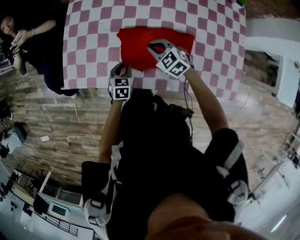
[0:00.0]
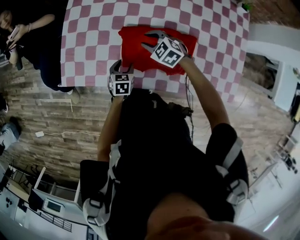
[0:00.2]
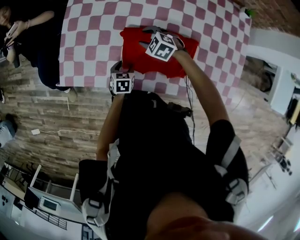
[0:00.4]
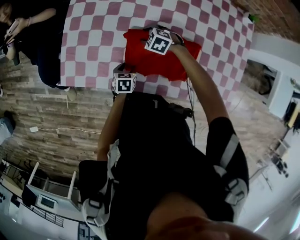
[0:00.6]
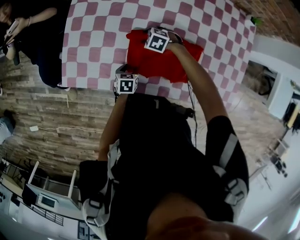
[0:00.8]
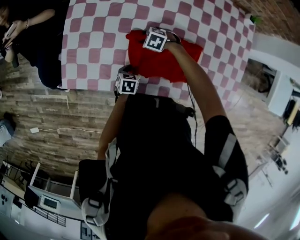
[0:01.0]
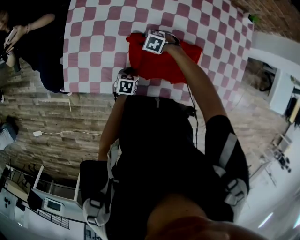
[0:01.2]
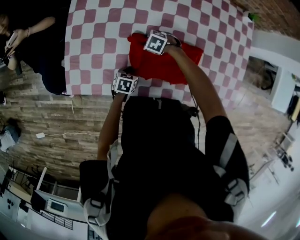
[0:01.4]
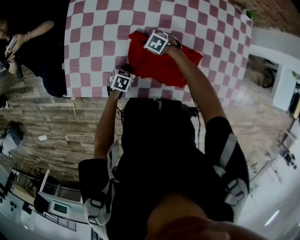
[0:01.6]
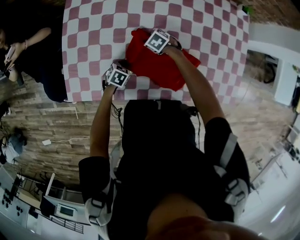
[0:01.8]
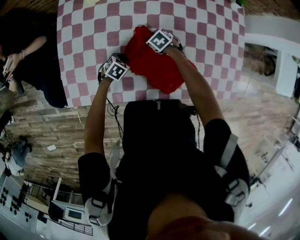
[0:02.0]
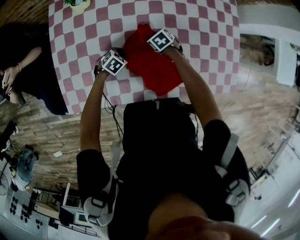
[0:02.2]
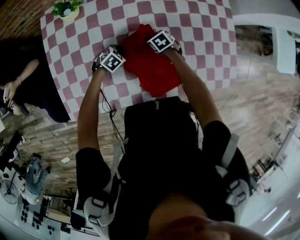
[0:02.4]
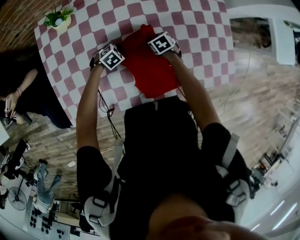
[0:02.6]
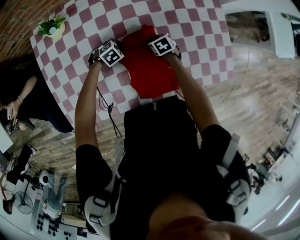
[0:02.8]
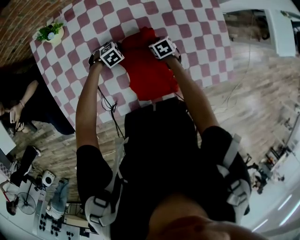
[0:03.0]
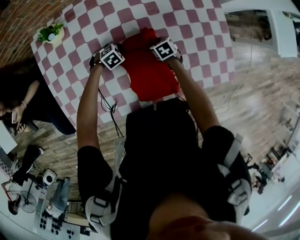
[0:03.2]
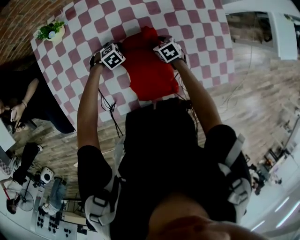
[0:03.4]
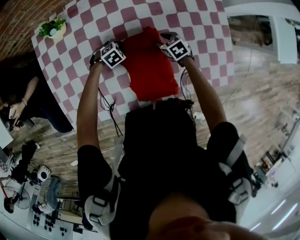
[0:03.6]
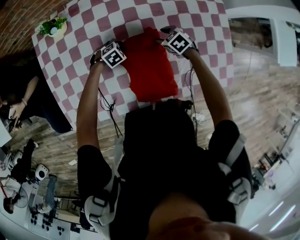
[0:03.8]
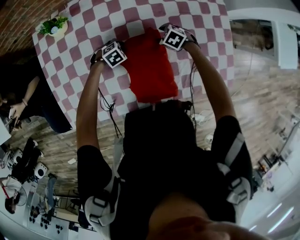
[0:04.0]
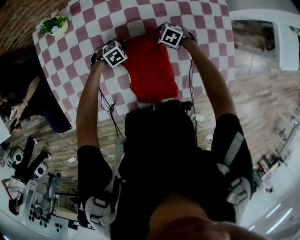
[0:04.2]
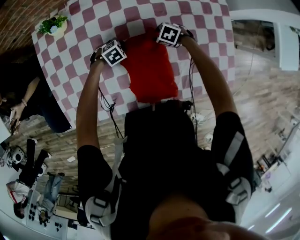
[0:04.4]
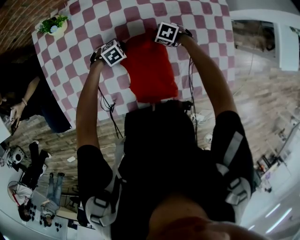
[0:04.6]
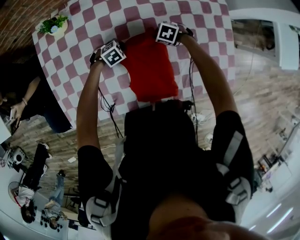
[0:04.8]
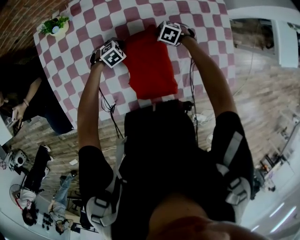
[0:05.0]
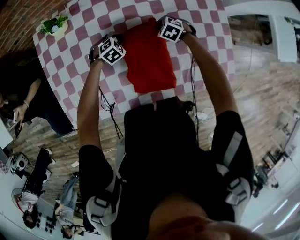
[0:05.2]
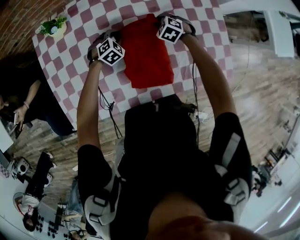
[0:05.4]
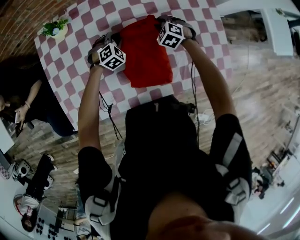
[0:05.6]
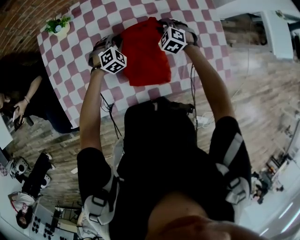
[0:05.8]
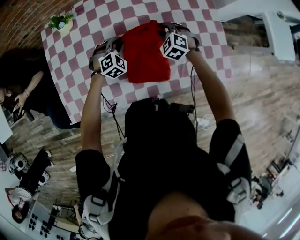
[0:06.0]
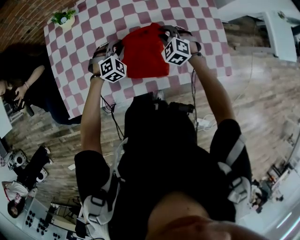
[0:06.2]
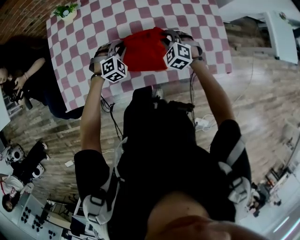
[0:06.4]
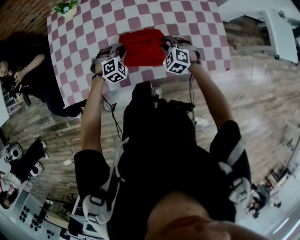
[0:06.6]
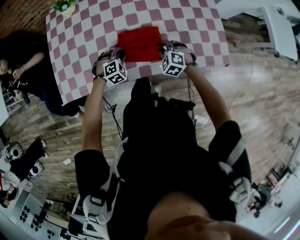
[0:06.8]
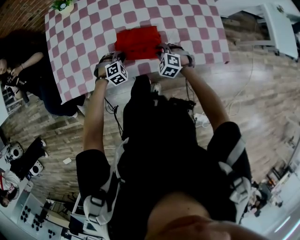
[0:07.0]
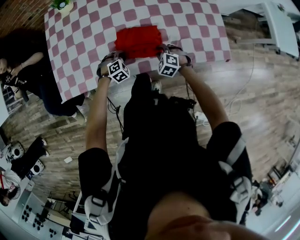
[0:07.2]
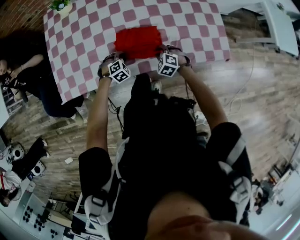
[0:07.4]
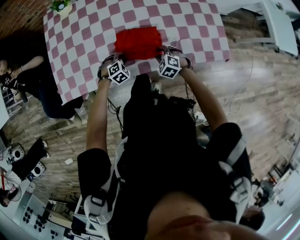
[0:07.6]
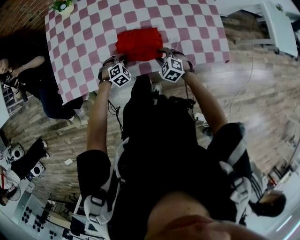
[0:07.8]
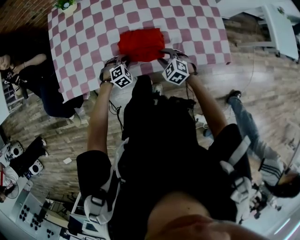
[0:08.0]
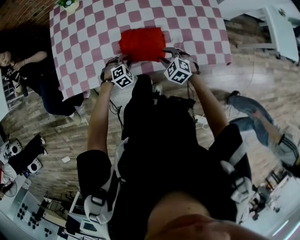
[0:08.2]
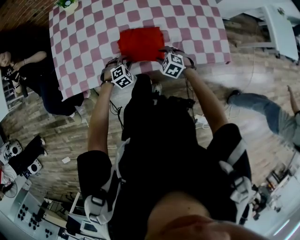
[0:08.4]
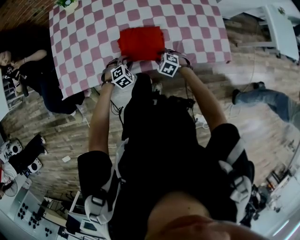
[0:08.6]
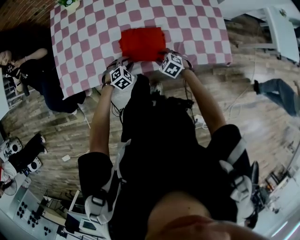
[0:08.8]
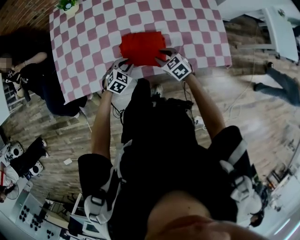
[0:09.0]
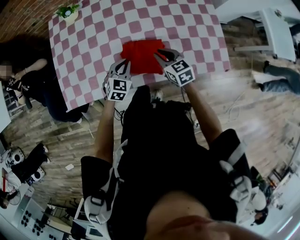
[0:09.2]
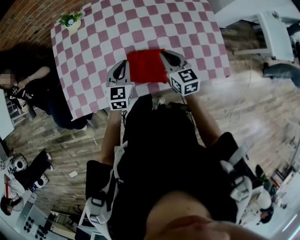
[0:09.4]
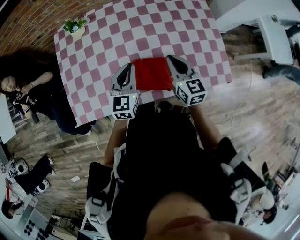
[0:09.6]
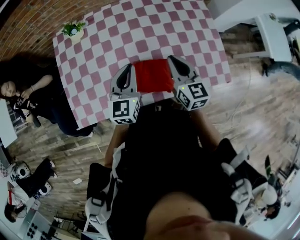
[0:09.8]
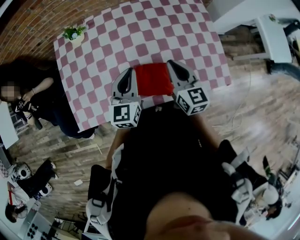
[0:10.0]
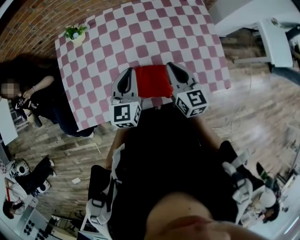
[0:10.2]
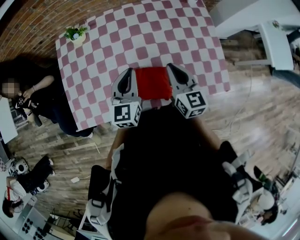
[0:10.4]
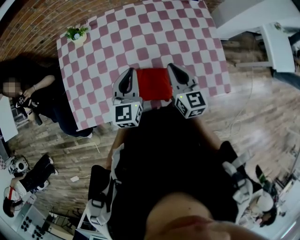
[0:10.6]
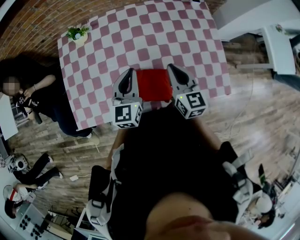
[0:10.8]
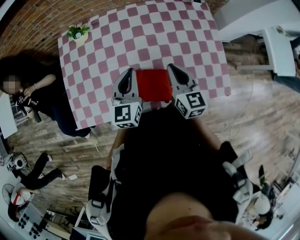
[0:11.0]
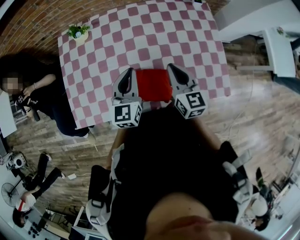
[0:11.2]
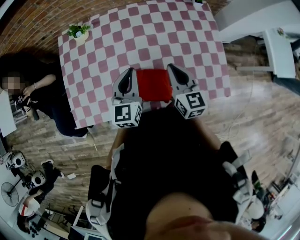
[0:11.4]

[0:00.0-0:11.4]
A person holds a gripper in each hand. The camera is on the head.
0.0 to 1.4 s: The left gripper moves downward, approximately 10 cm, turns by roughly 20 degrees, and opens, then closes again, while the right gripper travels downward by some 15 cm, rotates roughly 30 degrees, and opens.
1.4 to 2.8 s: The right gripper shifts by approximately 25 cm, and rolls clockwise, seen from behind, by about 60 degrees. The left gripper ends up approximately 25 cm from where it was, and rotates around the line of its fingers by about 60 degrees, clockwise from behind.
2.8 to 4.2 s: The right gripper shifts by approximately 5 cm, twists approximately 40 degrees counterclockwise, seen from behind, and opens its fingers.
4.2 to 5.6 s: The grippers both shift upward by roughly 10 cm. The left gripper rotates approximately 30 degrees, while the right gripper turns by roughly 30 degrees, and closes up.
5.6 to 7.2 s: The grippers both shift backward by approximately 30 cm.
7.2 to 8.6 s: The left gripper ends up roughly 5 cm from where it was. The right gripper goes upward and returns, about 5 cm each way, and opens up.
8.6 to 10.0 s: The two grippers go approximately 35 cm upward and forward. The left gripper angles its fingers upward, by approximately 50 degrees, and closes its fingers; the right gripper tips its fingers upward by some 50 degrees, and closes its fingers.
10.0 to 11.4 s: There are only small adjustments of the grippers.

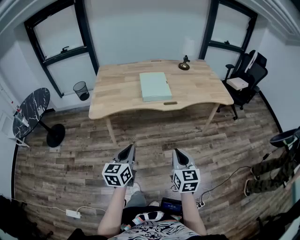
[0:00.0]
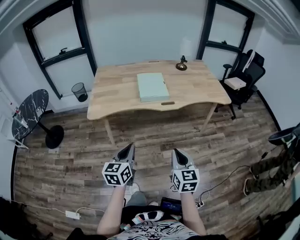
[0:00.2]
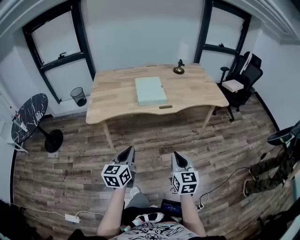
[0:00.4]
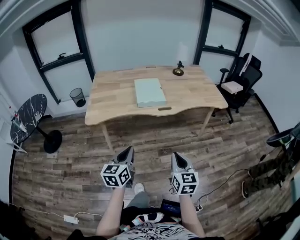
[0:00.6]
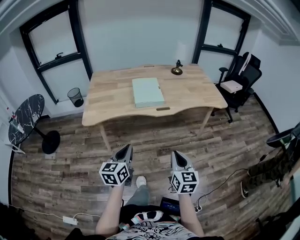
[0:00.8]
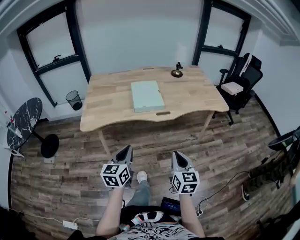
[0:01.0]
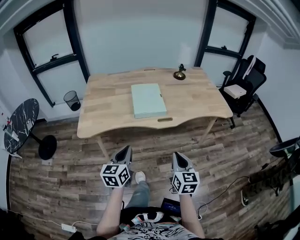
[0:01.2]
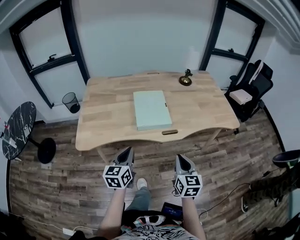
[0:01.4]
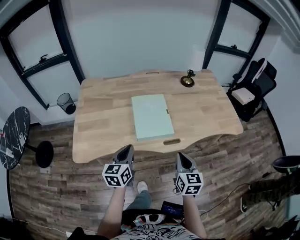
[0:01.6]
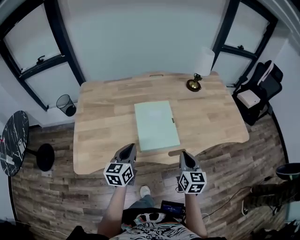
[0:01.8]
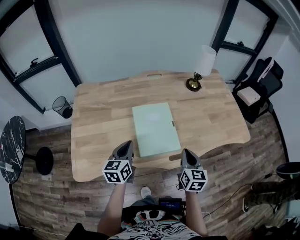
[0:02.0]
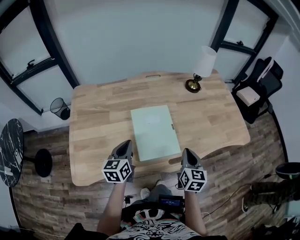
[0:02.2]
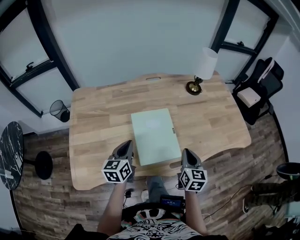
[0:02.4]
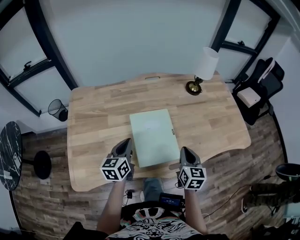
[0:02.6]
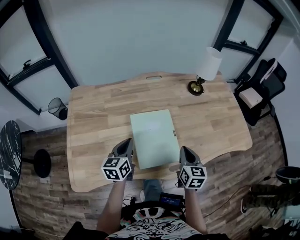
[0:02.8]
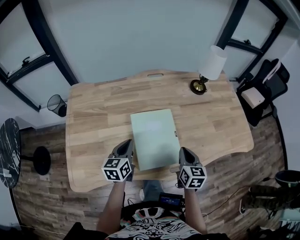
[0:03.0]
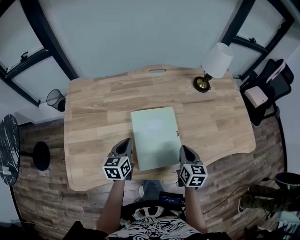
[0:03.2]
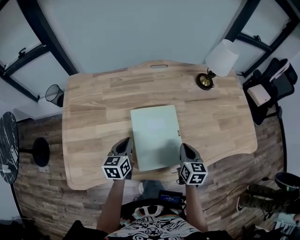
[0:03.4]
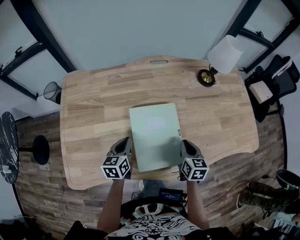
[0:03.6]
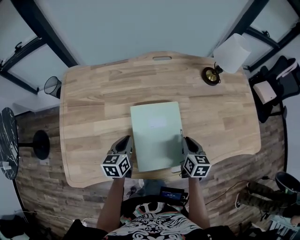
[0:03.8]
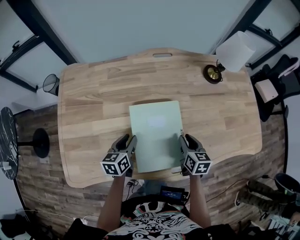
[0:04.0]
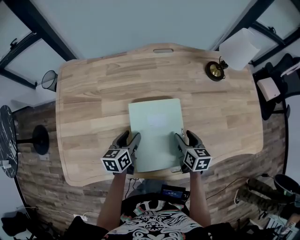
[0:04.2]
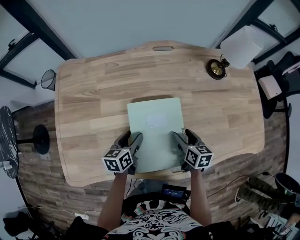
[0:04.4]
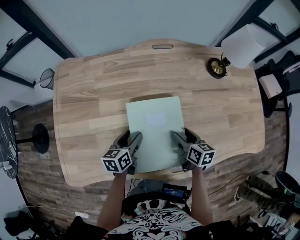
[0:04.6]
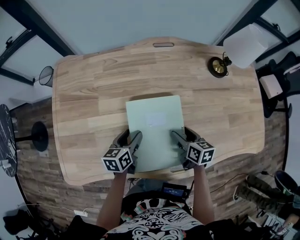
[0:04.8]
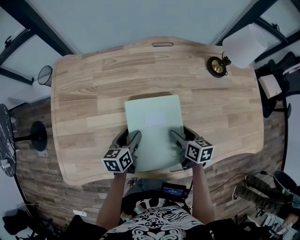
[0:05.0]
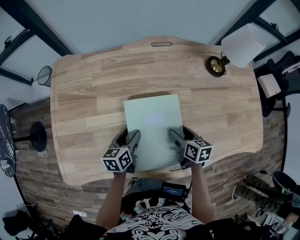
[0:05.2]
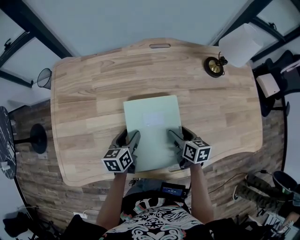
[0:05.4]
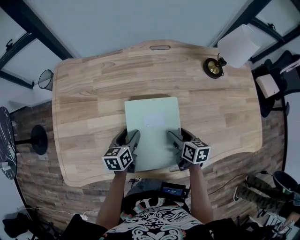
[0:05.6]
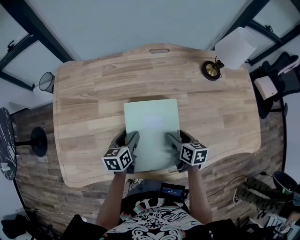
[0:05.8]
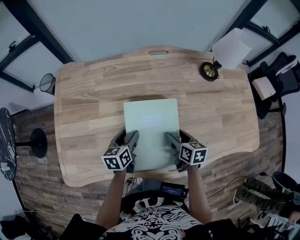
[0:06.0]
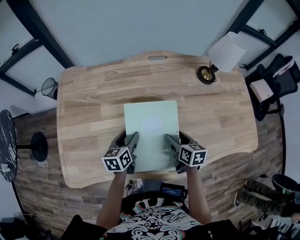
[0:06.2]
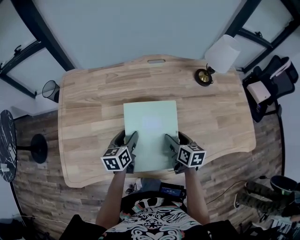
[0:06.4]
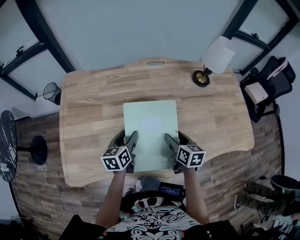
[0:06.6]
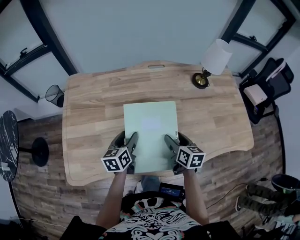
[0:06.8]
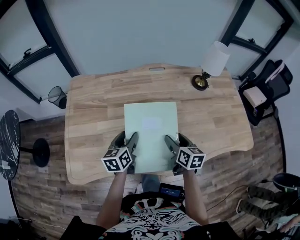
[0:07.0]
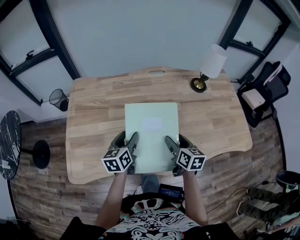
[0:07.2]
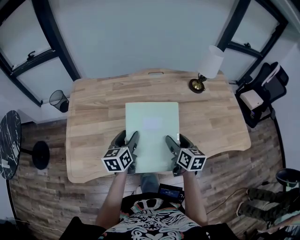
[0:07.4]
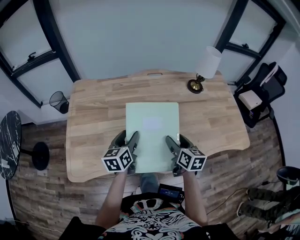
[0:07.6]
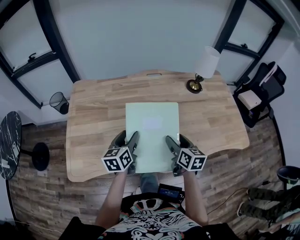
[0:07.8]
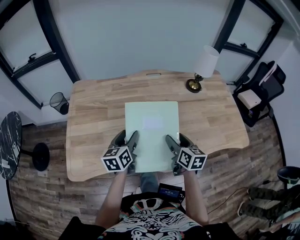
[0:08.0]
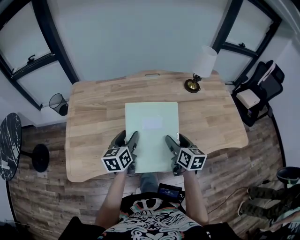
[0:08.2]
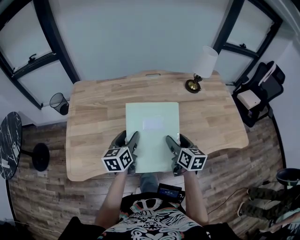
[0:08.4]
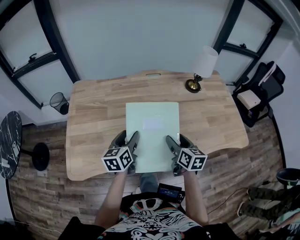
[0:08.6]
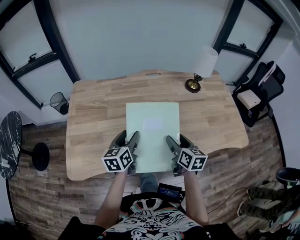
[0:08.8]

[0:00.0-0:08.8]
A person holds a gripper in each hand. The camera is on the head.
0.0 to 1.4 s: Both grippers move forward, roughly 25 cm.
1.4 to 3.0 s: Both grippers travel together forward, about 35 cm.
3.0 to 4.4 s: The left gripper travels downward by roughly 10 cm, and opens its fingers. The right gripper is displaced downward and forward by roughly 15 cm, changes its angle by about 20 degrees, and opens its fingers.
4.4 to 5.8 s: The grippers make only small movements.
5.8 to 7.4 s: The right gripper shifts about 15 cm upward and backward. Meanwhile the left gripper heads upward, covering approximately 15 cm.
7.4 to 8.8 s: The grippers move only a little.

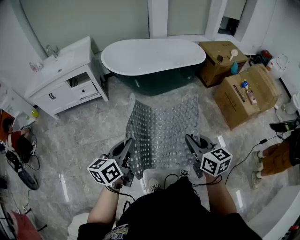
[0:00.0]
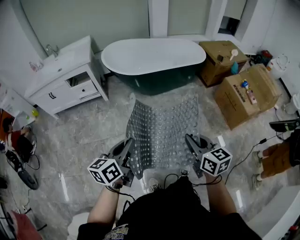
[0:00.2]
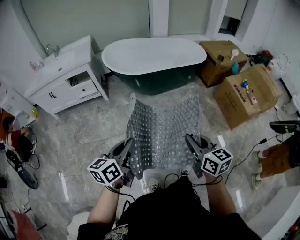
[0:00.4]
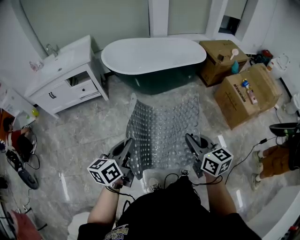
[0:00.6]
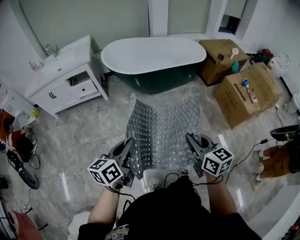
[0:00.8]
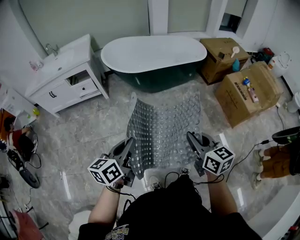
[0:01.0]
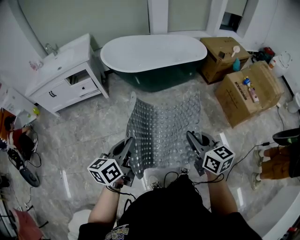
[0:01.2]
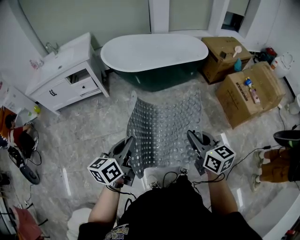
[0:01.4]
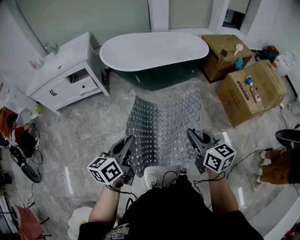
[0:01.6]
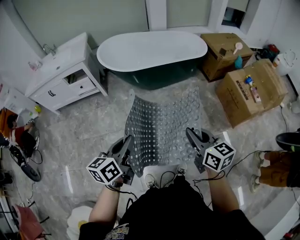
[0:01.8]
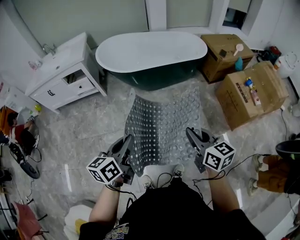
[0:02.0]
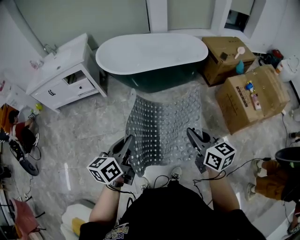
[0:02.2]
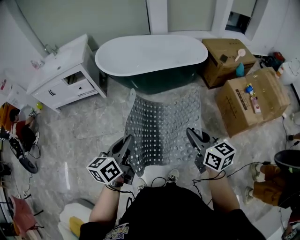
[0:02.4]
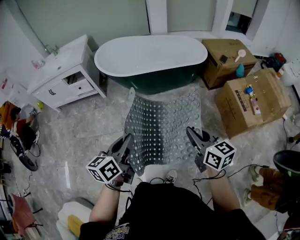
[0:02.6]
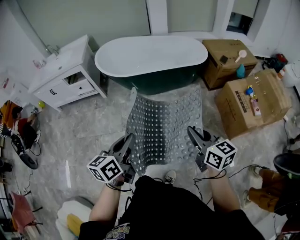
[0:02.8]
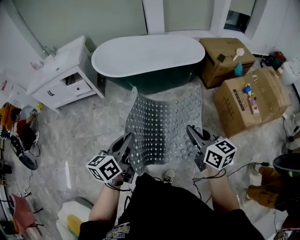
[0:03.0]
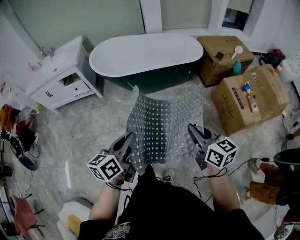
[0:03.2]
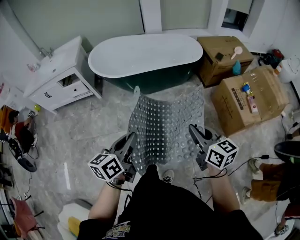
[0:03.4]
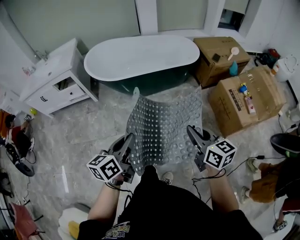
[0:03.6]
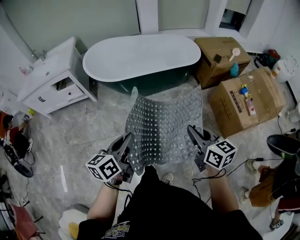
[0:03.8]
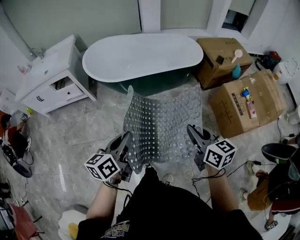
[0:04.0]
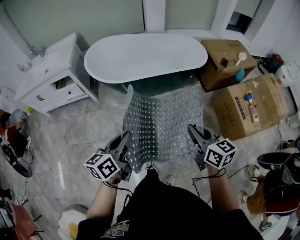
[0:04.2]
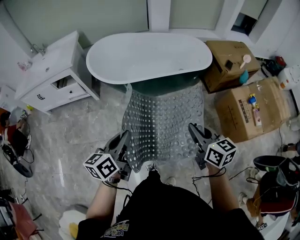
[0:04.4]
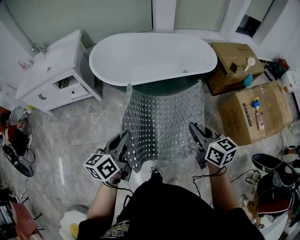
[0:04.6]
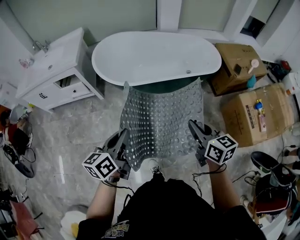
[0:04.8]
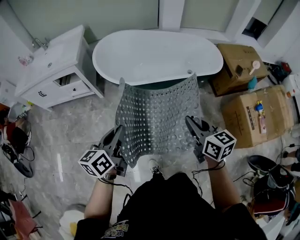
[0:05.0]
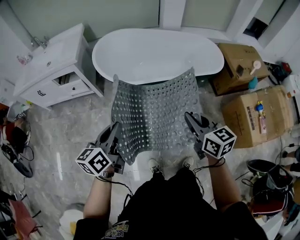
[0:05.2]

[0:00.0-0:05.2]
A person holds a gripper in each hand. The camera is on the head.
0.0 to 1.8 s: The right gripper heads to the right and forward, covering approximately 10 cm. The left gripper travels to the right by about 10 cm.
1.8 to 3.4 s: Both grippers move to the right, approximately 20 cm.
3.4 to 5.2 s: Both grippers travel together forward and to the left, roughly 35 cm.
